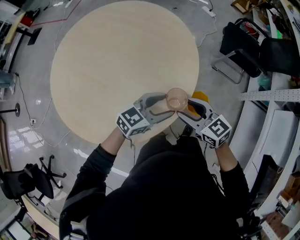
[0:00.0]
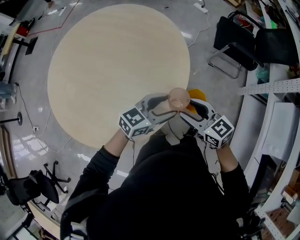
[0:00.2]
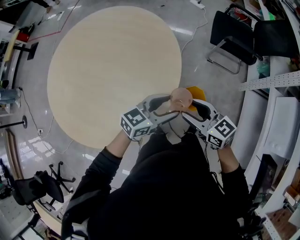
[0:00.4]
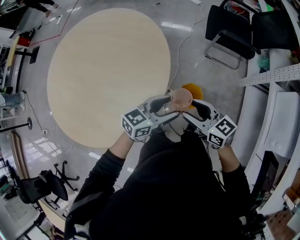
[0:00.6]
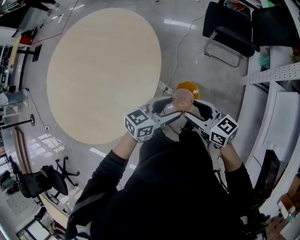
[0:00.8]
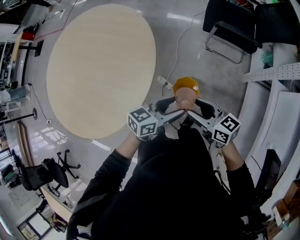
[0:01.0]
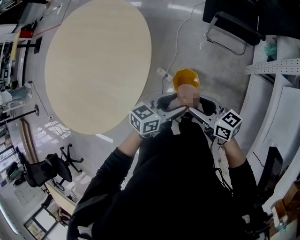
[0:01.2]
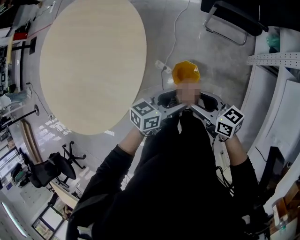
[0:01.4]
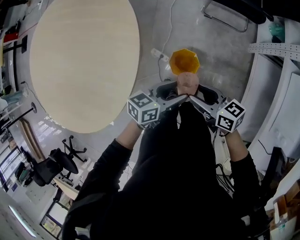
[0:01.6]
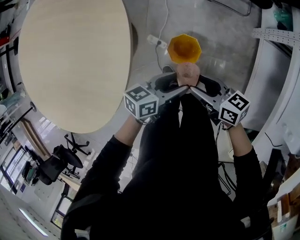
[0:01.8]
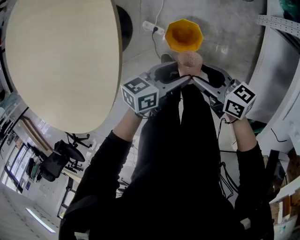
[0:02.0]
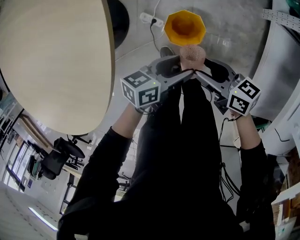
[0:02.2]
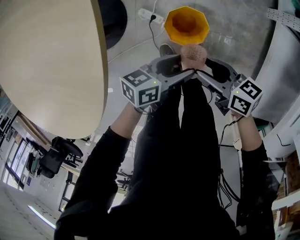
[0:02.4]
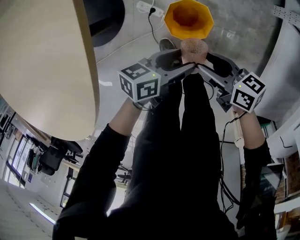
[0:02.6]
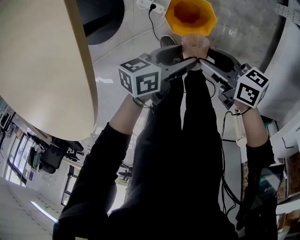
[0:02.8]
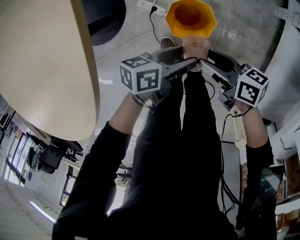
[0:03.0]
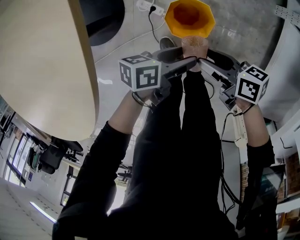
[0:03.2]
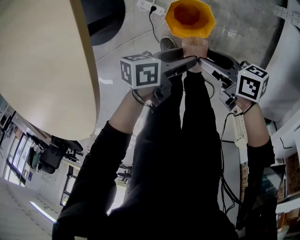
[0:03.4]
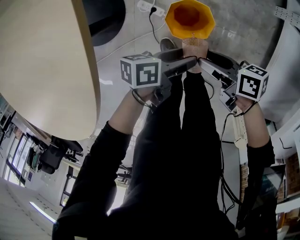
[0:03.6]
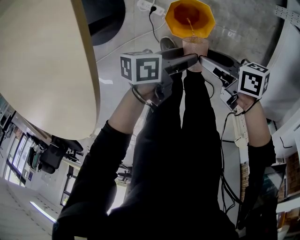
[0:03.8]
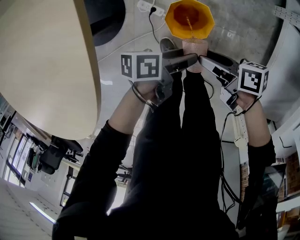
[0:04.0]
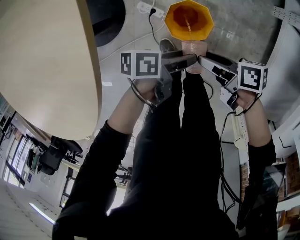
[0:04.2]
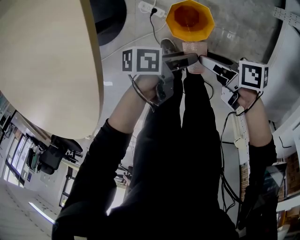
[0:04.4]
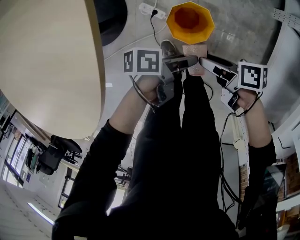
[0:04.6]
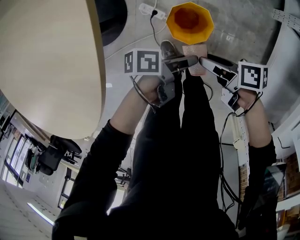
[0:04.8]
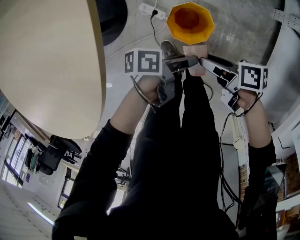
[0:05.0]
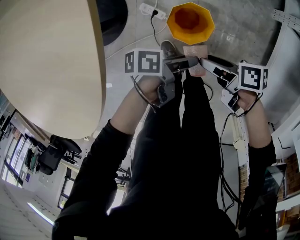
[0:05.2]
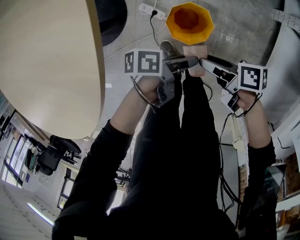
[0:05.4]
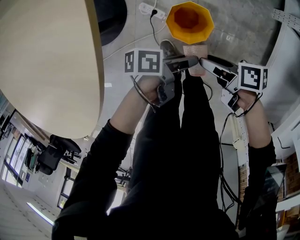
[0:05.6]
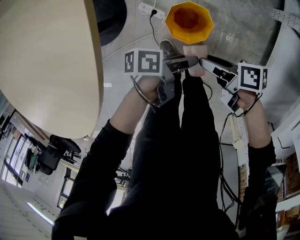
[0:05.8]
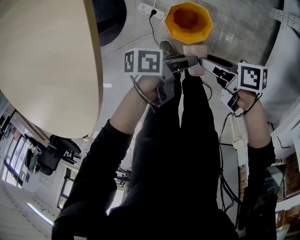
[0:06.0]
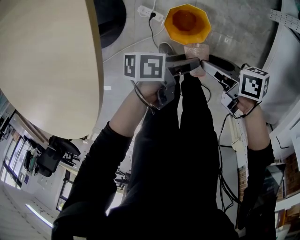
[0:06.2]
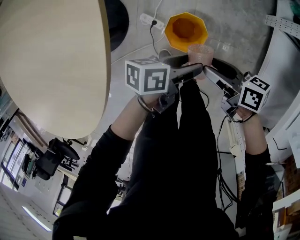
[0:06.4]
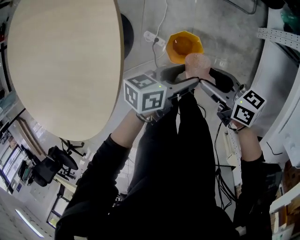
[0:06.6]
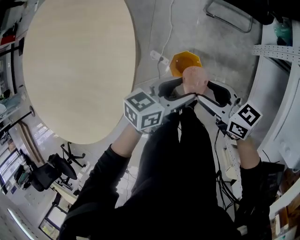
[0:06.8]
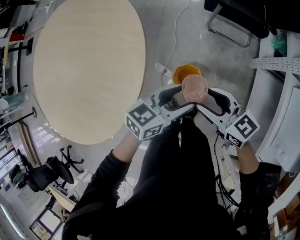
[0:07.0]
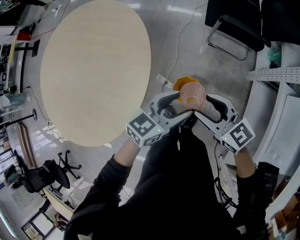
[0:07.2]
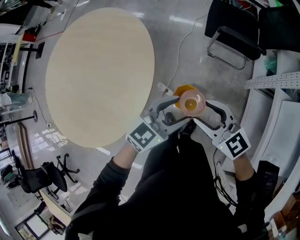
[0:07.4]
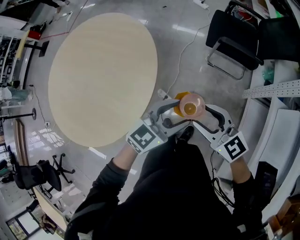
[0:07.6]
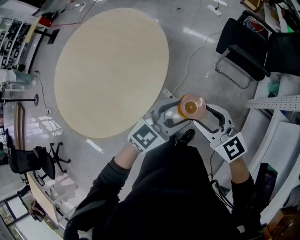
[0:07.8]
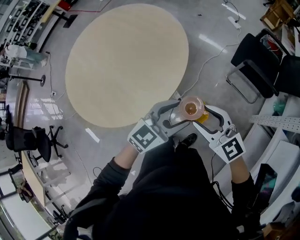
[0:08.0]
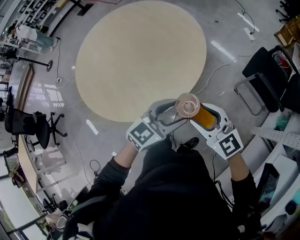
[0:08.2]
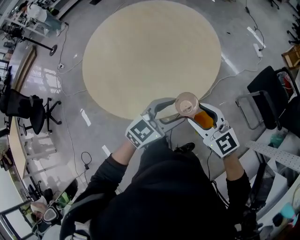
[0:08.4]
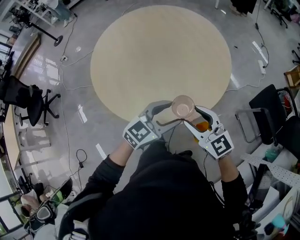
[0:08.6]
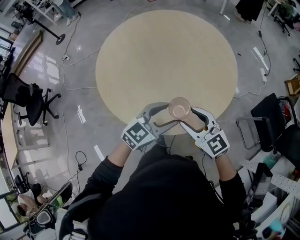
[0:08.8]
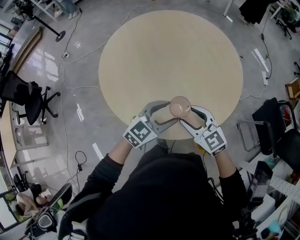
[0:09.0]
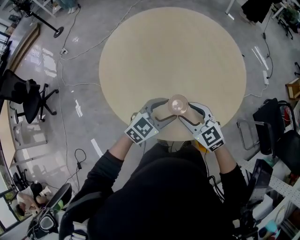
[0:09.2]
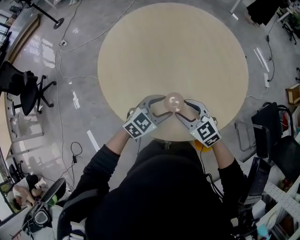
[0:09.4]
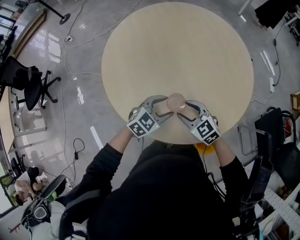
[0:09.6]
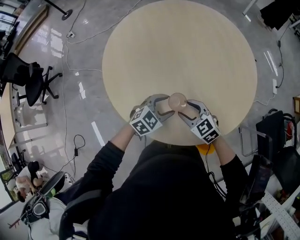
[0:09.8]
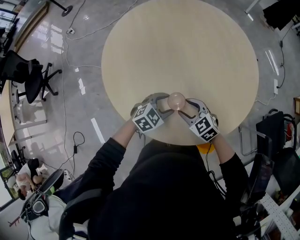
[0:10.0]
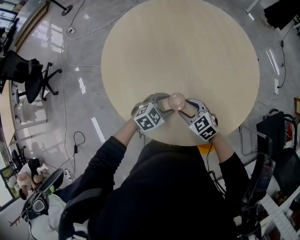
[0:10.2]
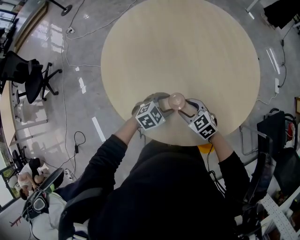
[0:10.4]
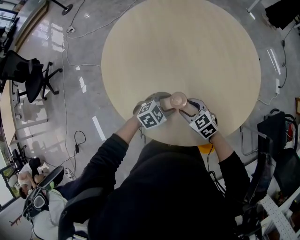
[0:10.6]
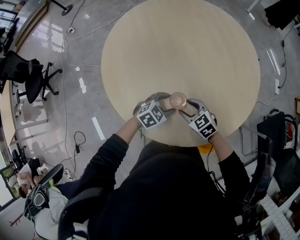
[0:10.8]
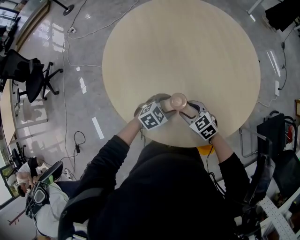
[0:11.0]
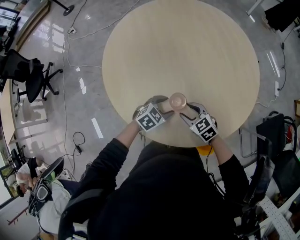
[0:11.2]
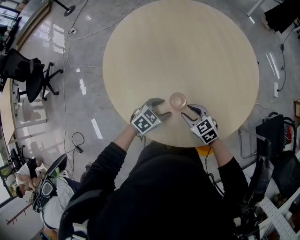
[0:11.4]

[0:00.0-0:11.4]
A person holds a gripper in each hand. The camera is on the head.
0:00.0 to 0:01.4: The two grippers go about 35 cm to the right. The left gripper turns by approximately 30 degrees; the right gripper swivels some 30 degrees.
0:01.4 to 0:02.8: Both grippers move downward, approximately 30 cm. The left gripper swivels some 20 degrees. The right gripper changes its angle by approximately 20 degrees.
0:02.8 to 0:04.2: The right gripper swivels about 20 degrees; the left gripper turns by roughly 20 degrees.
0:04.2 to 0:05.6: There are only small adjustments of the grippers.
0:05.6 to 0:07.2: The grippers both shift upward by some 35 cm. The left gripper rolls clockwise, seen from behind, by some 70 degrees; the right gripper twists about 70 degrees counterclockwise, seen from behind.
0:07.2 to 0:08.6: The left gripper changes place by approximately 35 cm, and turns by some 40 degrees, while the right gripper shifts by about 35 cm, and turns by about 40 degrees.
0:08.6 to 0:10.0: The left gripper heads downward, to the left and forward, covering some 30 cm, and swivels roughly 30 degrees, while the right gripper heads downward, forward and to the left, covering some 25 cm, and changes its angle by some 30 degrees.
0:10.0 to 0:11.4: The grippers make only small movements.

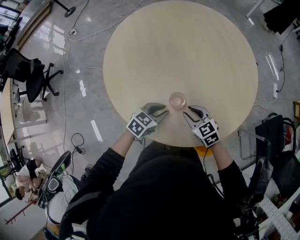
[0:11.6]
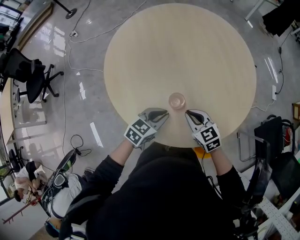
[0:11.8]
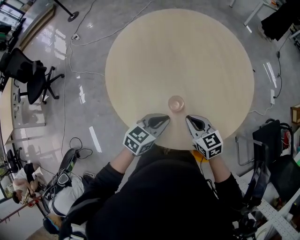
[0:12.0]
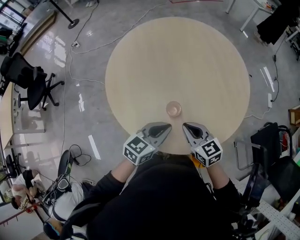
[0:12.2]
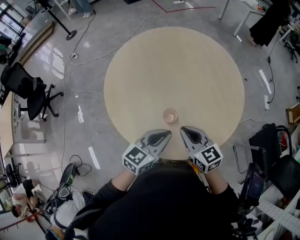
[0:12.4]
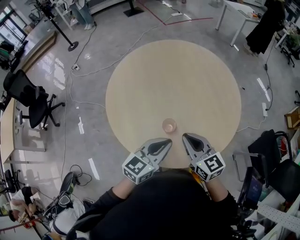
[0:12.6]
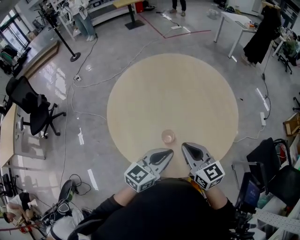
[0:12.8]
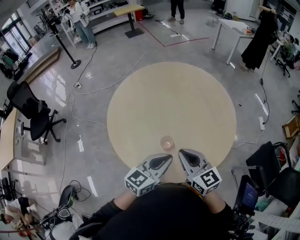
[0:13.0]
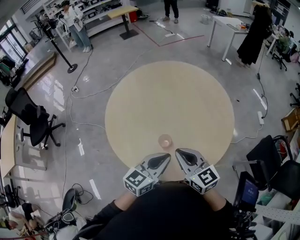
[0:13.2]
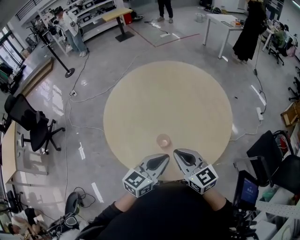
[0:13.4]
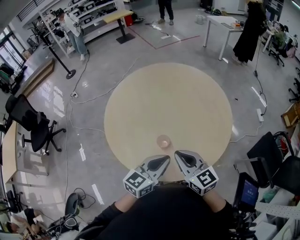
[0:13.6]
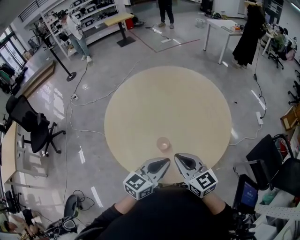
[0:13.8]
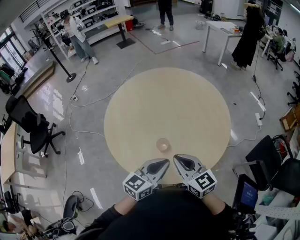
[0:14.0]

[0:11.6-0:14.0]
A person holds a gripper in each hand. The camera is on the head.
0:11.6 to 0:12.8: Both grippers travel together upward, some 20 cm. The right gripper swivels approximately 30 degrees, and closes. Meanwhile the left gripper rotates approximately 30 degrees.
0:12.8 to 0:14.0: The grippers move only a little.

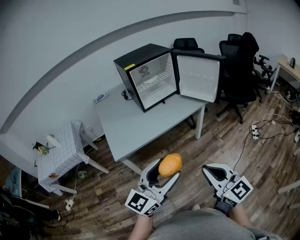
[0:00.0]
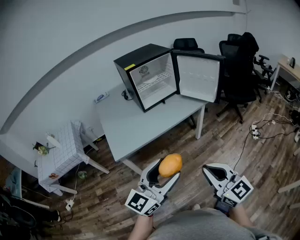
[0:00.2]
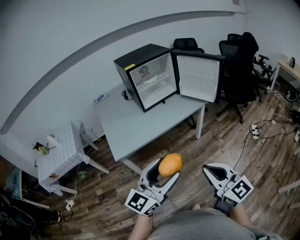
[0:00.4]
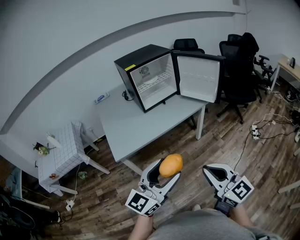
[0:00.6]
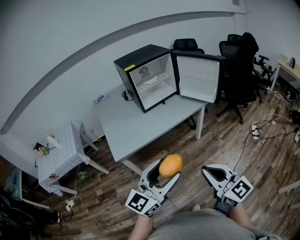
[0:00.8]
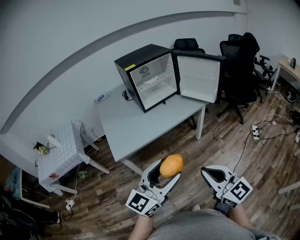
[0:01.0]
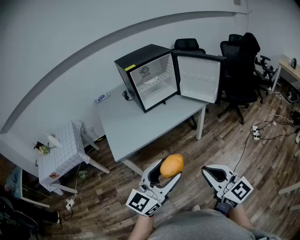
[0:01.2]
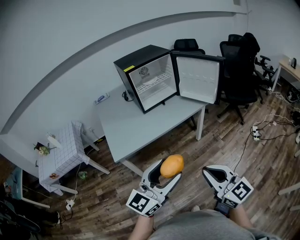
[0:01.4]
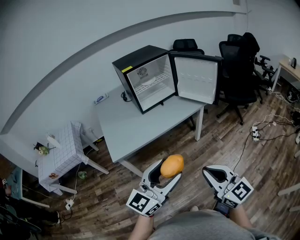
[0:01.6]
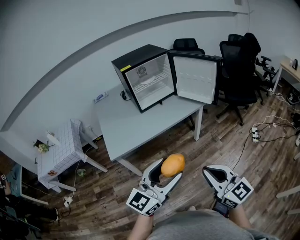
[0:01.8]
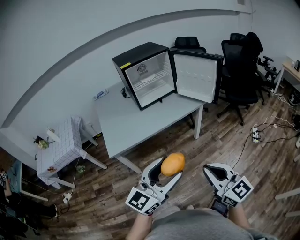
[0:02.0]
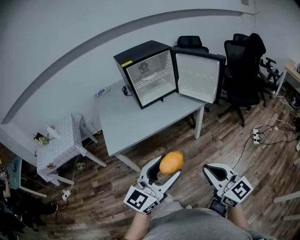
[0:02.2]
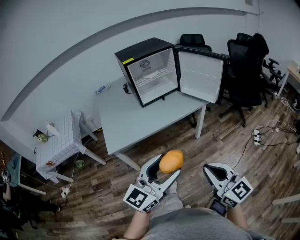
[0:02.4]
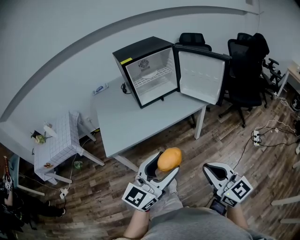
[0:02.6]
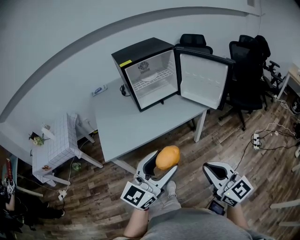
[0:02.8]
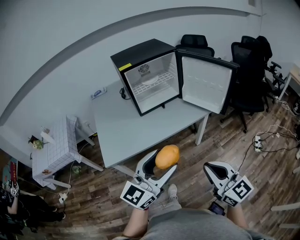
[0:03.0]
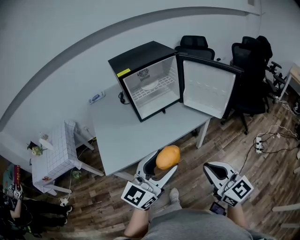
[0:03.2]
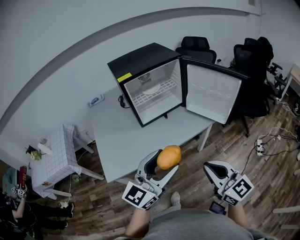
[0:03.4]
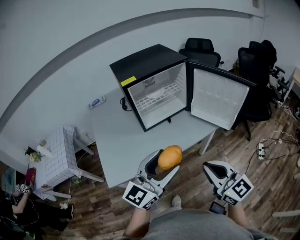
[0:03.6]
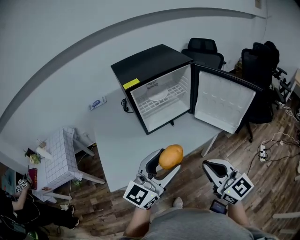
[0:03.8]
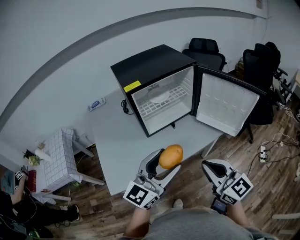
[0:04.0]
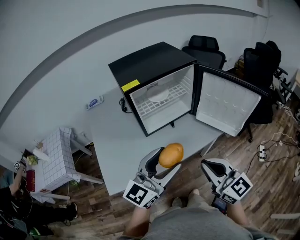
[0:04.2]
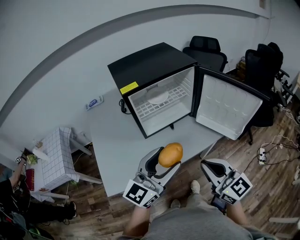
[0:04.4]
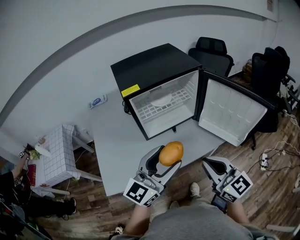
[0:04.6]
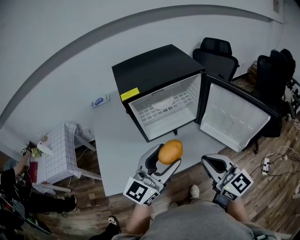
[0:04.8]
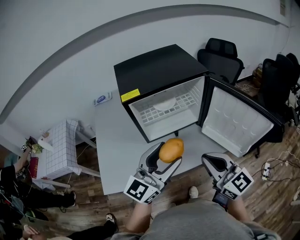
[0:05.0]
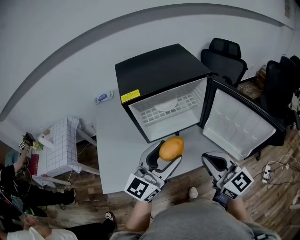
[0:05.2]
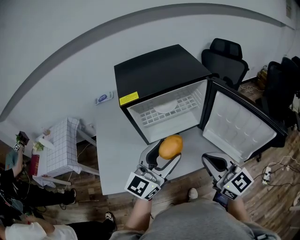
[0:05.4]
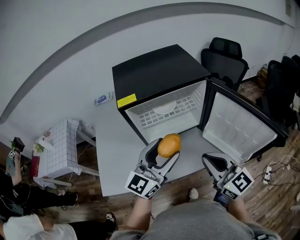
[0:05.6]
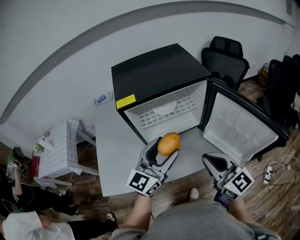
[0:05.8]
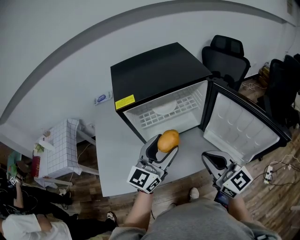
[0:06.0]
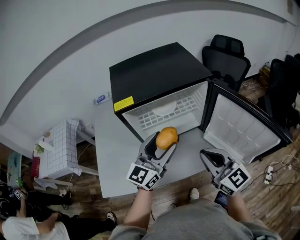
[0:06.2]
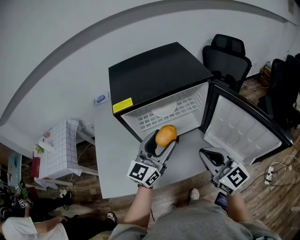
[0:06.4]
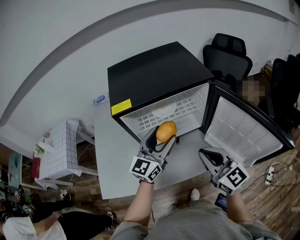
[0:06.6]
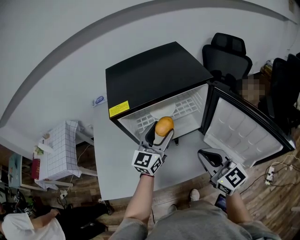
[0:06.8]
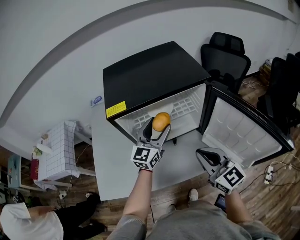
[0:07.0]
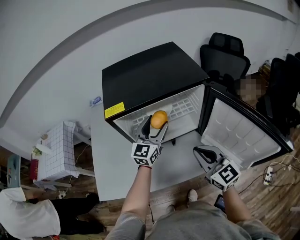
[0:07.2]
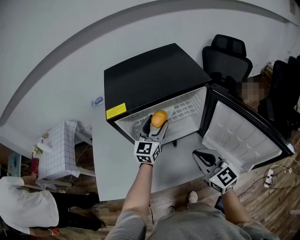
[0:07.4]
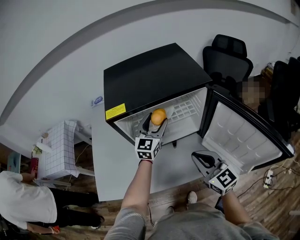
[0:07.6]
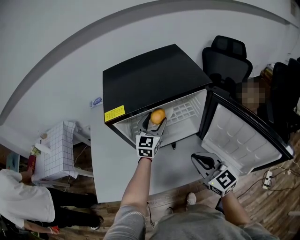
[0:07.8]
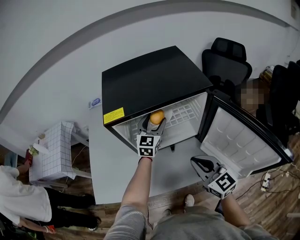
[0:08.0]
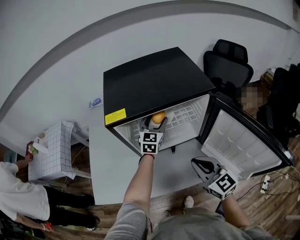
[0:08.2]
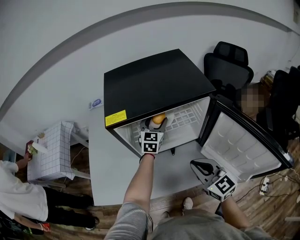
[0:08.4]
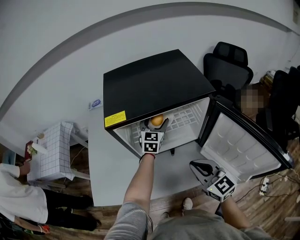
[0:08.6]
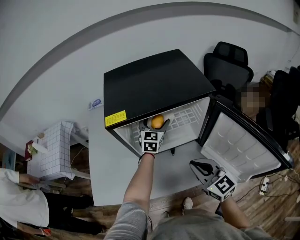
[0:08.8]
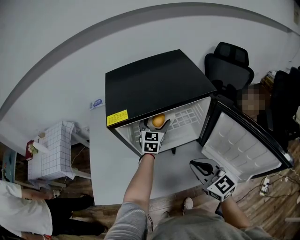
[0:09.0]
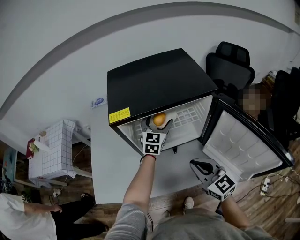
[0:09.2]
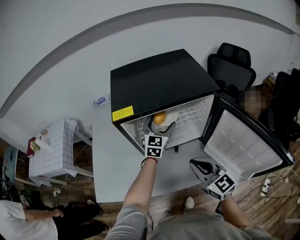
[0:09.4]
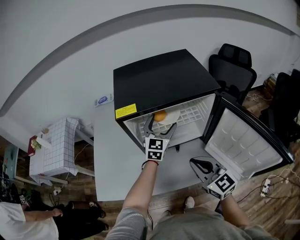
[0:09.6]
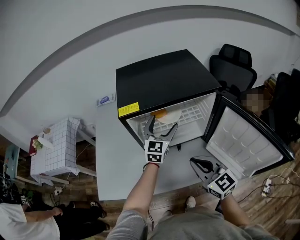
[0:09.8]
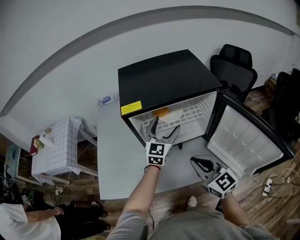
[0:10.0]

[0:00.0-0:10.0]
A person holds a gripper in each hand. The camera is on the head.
0:00.0 to 0:01.4: There are only small adjustments of the grippers.
0:01.4 to 0:02.8: The left gripper heads forward, covering about 10 cm; the right gripper goes about 10 cm forward and to the right.
0:02.8 to 0:04.2: The grippers both shift forward by approximately 30 cm.
0:04.2 to 0:05.8: The grippers both shift forward by roughly 15 cm.
0:05.8 to 0:07.2: The left gripper moves forward and downward, roughly 20 cm. The right gripper is displaced forward and downward by approximately 10 cm.
0:07.2 to 0:08.6: The left gripper is displaced forward and downward by some 15 cm.
0:08.6 to 0:10.0: The right gripper moves roughly 5 cm, while the left gripper is displaced backward and upward by some 10 cm.
